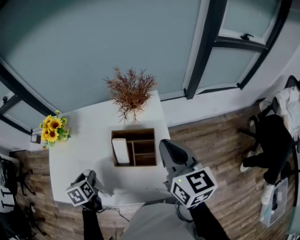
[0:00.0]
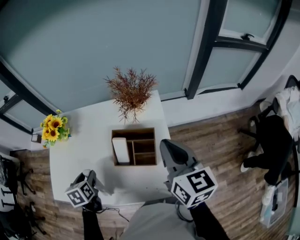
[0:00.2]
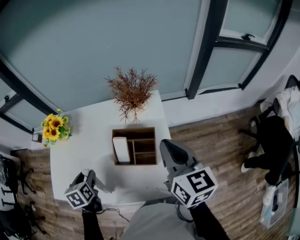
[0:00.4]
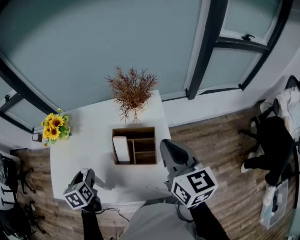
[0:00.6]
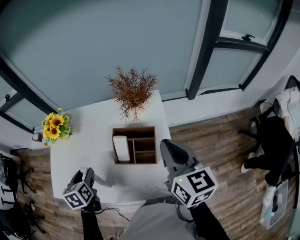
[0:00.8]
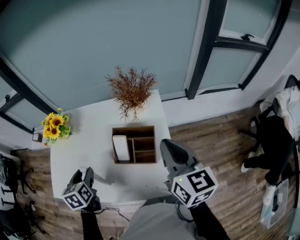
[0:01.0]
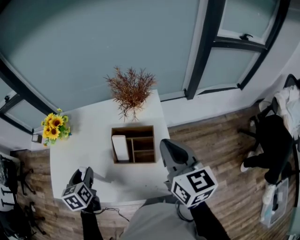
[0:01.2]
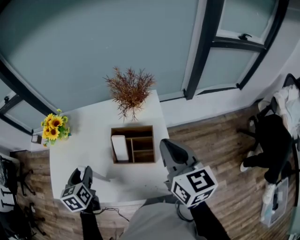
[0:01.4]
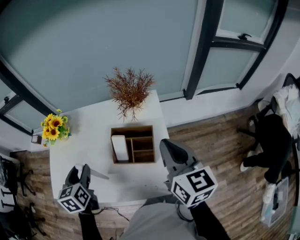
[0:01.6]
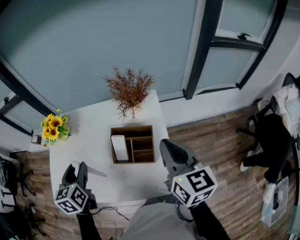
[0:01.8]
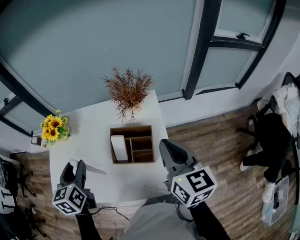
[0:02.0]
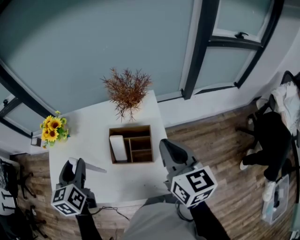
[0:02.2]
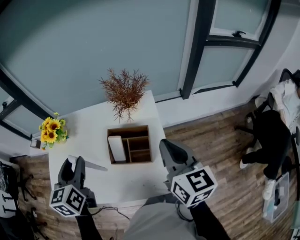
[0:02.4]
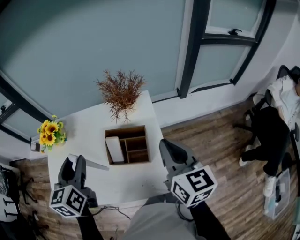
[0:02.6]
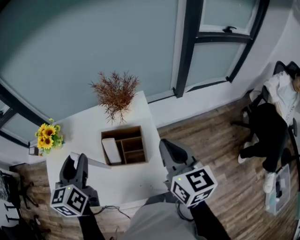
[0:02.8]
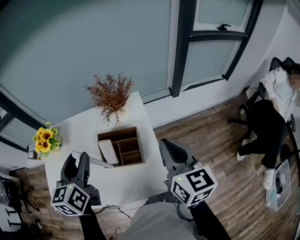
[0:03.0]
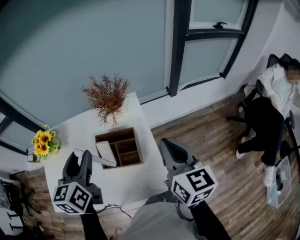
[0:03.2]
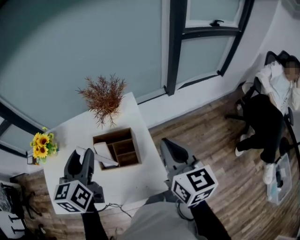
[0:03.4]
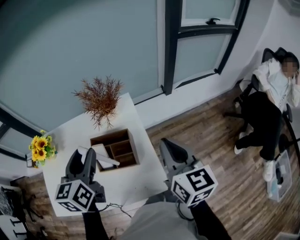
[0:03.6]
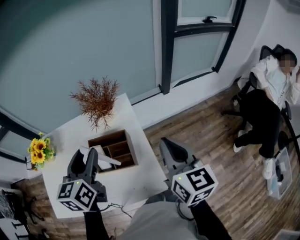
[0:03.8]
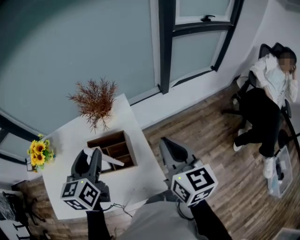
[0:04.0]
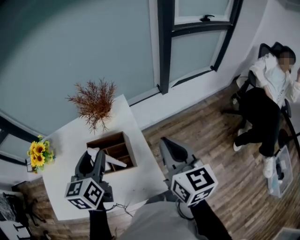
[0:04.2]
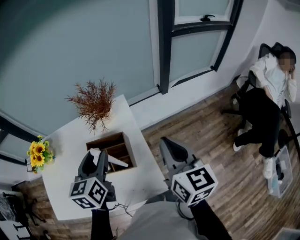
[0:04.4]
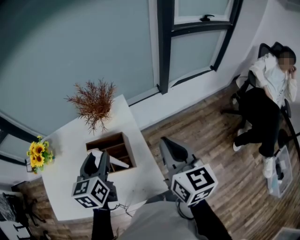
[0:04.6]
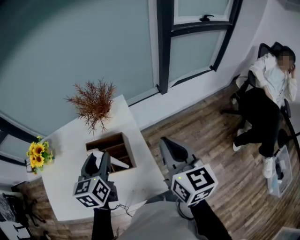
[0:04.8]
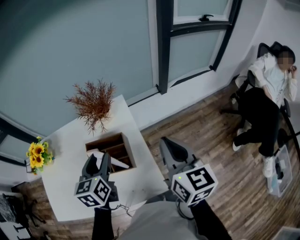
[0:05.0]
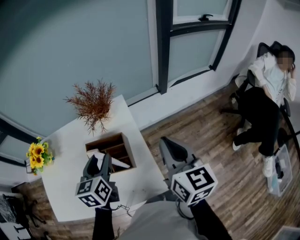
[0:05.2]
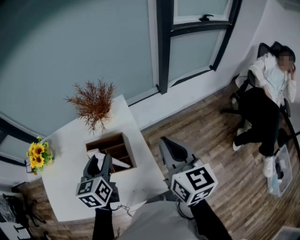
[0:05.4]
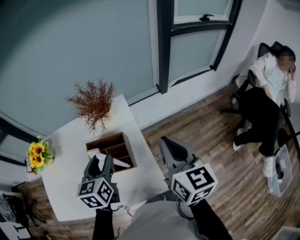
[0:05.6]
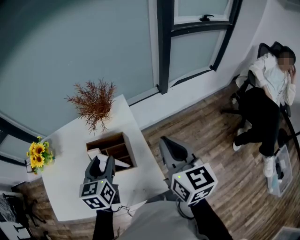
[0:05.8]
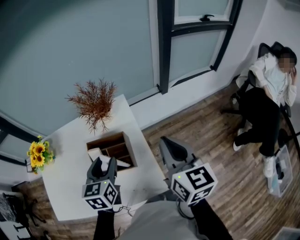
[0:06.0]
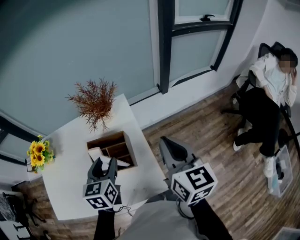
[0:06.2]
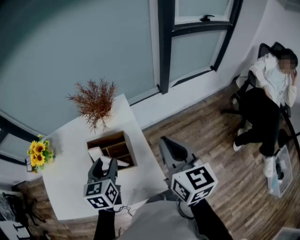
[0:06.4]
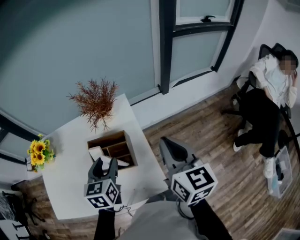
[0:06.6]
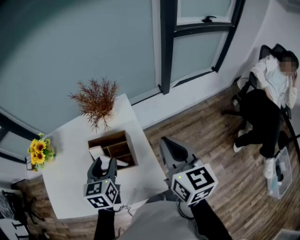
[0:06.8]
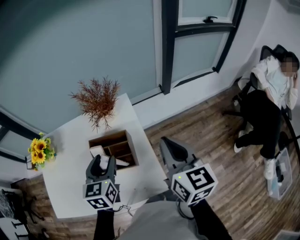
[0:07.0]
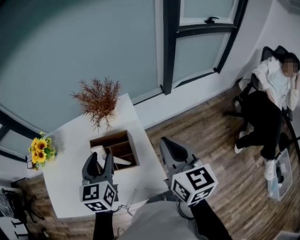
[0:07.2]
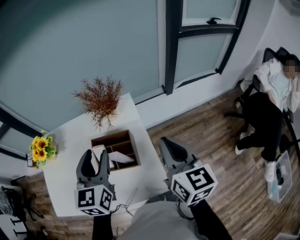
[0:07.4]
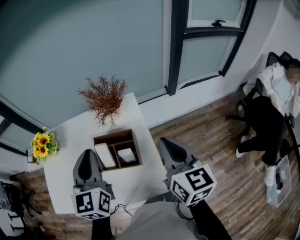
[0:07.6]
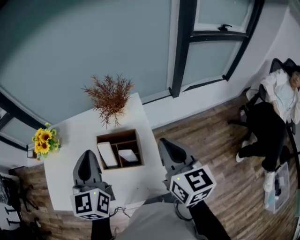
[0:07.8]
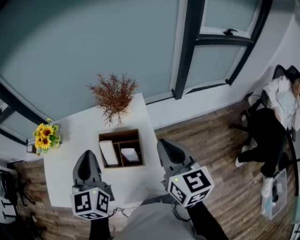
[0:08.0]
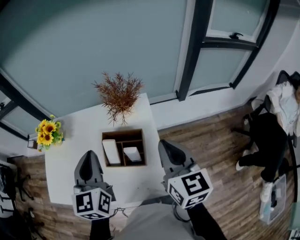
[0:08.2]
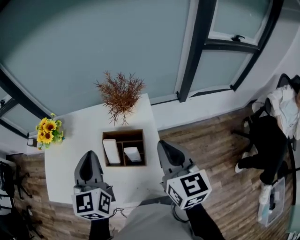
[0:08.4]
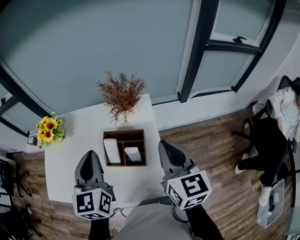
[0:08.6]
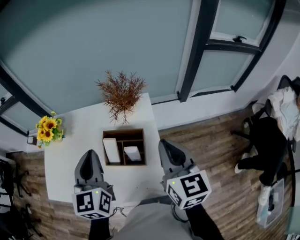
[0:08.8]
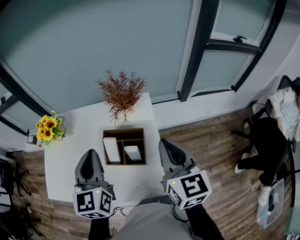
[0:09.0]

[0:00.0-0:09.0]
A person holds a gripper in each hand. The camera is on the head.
0:00.0 to 0:01.6: The left gripper travels upward by some 10 cm.
0:01.6 to 0:03.0: The left gripper goes approximately 15 cm to the right and upward, and turns by approximately 20 degrees. Meanwhile the right gripper changes place by approximately 5 cm.
0:03.0 to 0:04.4: The left gripper travels to the right and downward by approximately 10 cm, while the right gripper travels to the right by roughly 5 cm.
0:04.4 to 0:06.0: The left gripper moves downward, approximately 5 cm.
0:06.0 to 0:07.6: The left gripper shifts about 10 cm upward, changes its angle by approximately 20 degrees, and closes.
0:07.6 to 0:09.0: The grippers make only small movements.

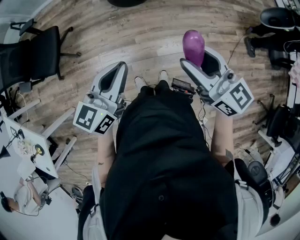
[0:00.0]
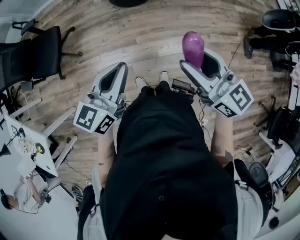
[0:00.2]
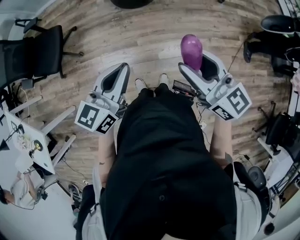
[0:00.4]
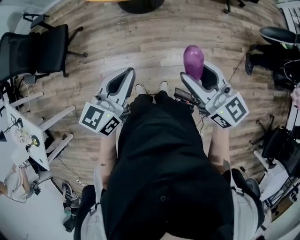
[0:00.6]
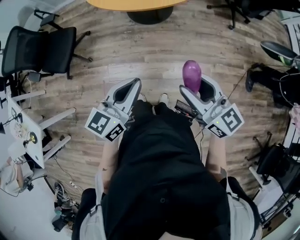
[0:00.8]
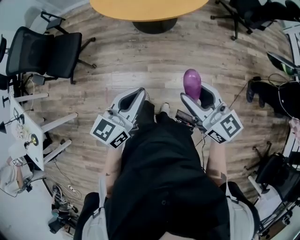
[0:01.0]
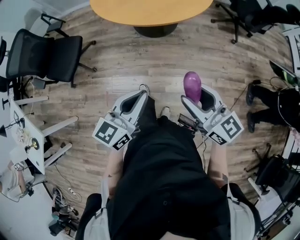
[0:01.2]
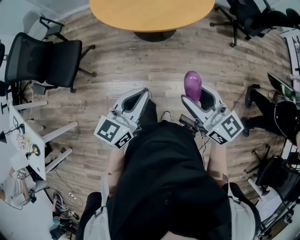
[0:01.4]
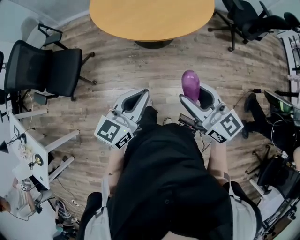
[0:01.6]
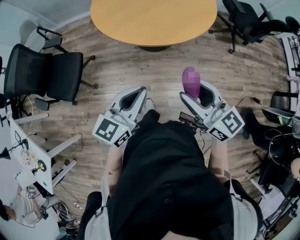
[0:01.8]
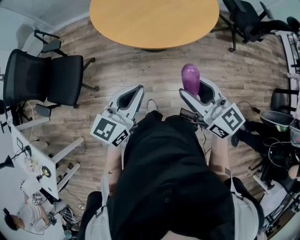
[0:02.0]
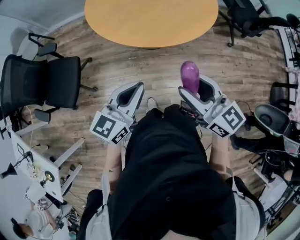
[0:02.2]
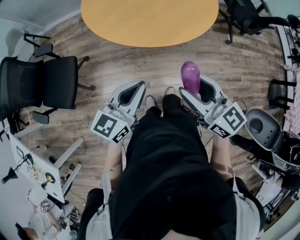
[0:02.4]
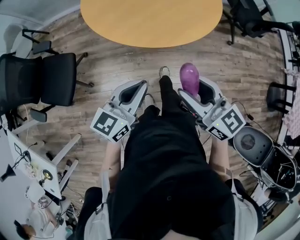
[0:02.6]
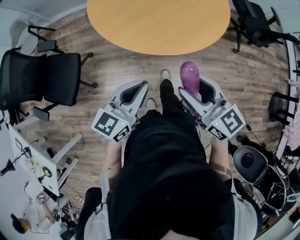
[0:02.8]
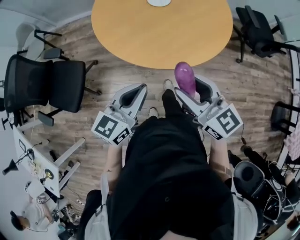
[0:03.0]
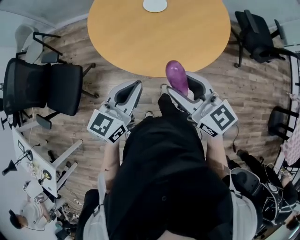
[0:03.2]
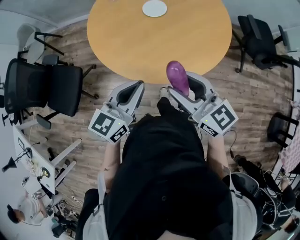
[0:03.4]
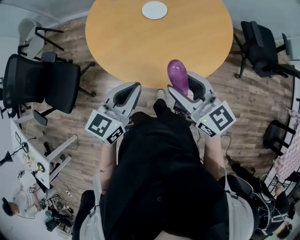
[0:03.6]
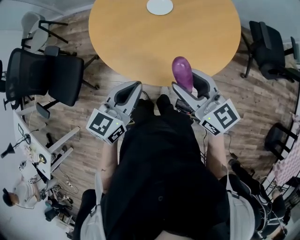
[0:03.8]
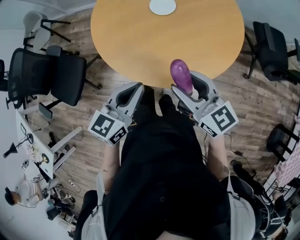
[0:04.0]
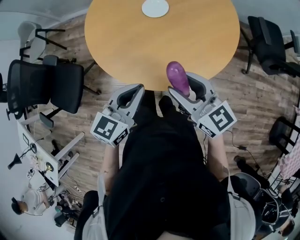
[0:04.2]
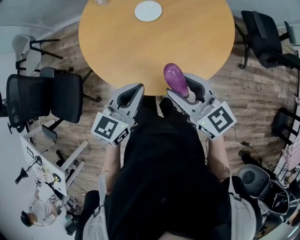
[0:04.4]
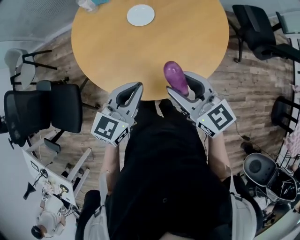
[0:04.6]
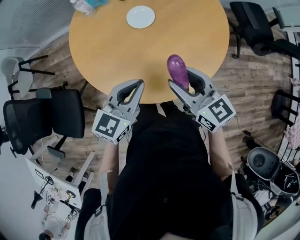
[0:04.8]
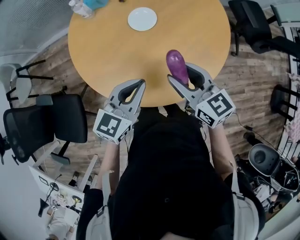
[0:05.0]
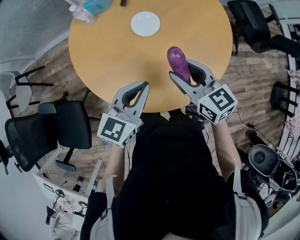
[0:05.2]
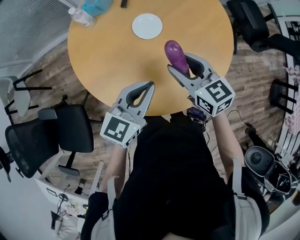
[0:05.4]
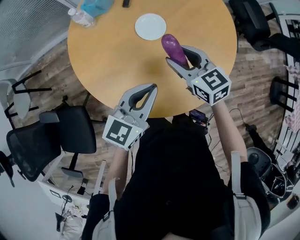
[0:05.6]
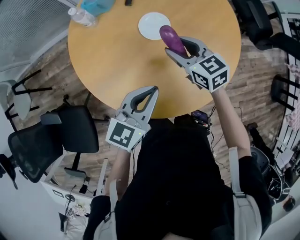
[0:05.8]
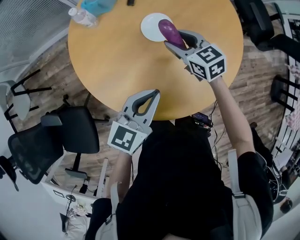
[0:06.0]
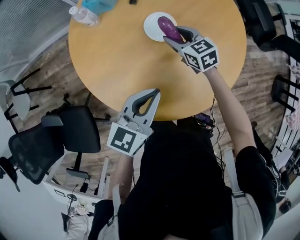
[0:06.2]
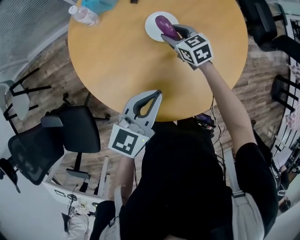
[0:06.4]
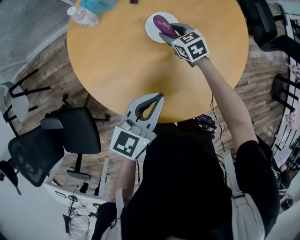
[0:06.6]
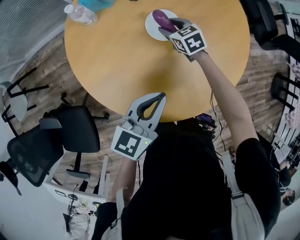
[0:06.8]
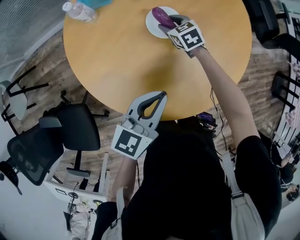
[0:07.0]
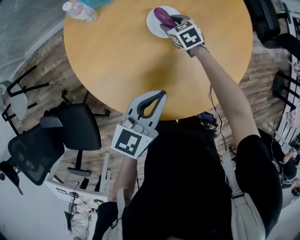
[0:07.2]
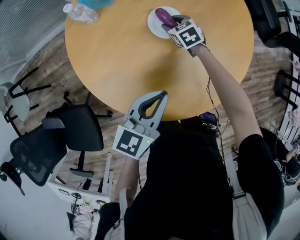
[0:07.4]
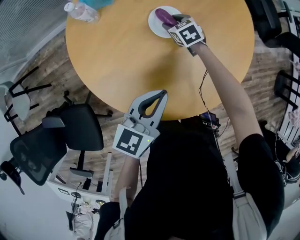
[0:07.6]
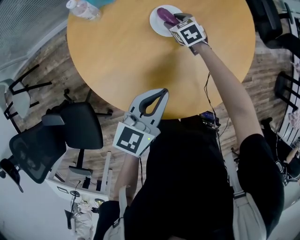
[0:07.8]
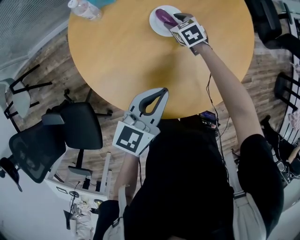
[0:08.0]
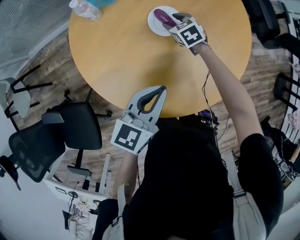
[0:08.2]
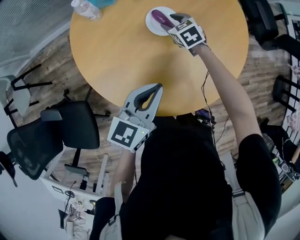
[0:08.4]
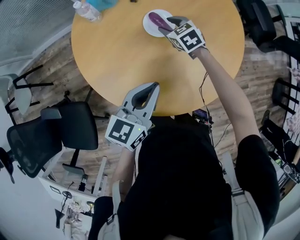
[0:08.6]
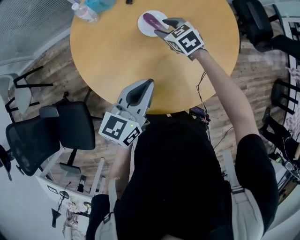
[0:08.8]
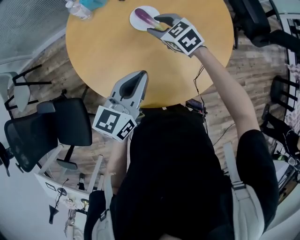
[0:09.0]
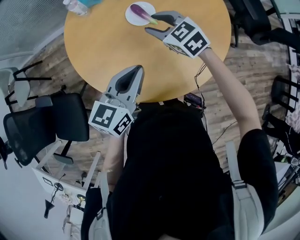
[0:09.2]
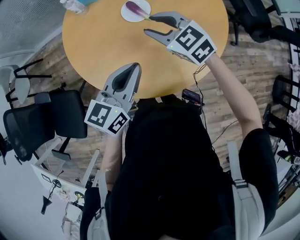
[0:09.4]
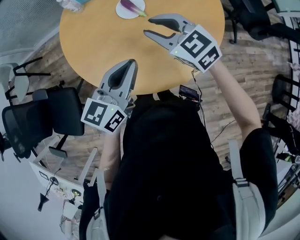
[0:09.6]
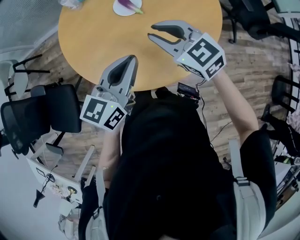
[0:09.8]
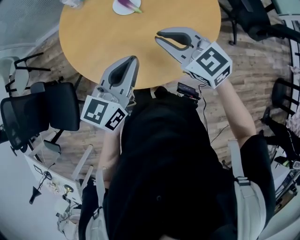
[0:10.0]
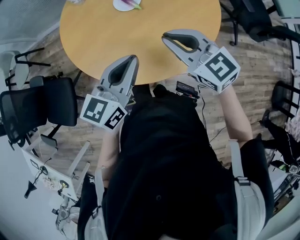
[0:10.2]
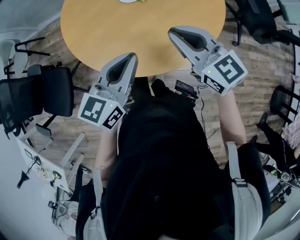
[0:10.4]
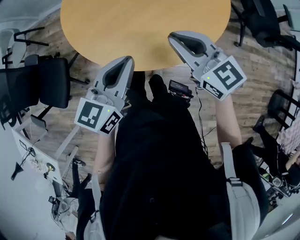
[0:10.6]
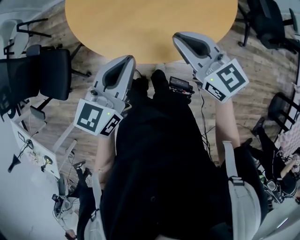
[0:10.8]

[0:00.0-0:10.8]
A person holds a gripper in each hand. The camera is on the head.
0:00.0 to 0:01.6: Both grippers move forward, roughly 15 cm.
0:01.6 to 0:03.0: The two grippers go some 25 cm forward.
0:03.0 to 0:04.6: Both grippers move forward, roughly 20 cm.
0:04.6 to 0:06.2: The right gripper shifts about 40 cm forward, downward and to the left, and changes its angle by approximately 30 degrees. The left gripper goes roughly 20 cm forward and to the left.
0:06.2 to 0:07.8: The right gripper goes approximately 15 cm downward and forward, and turns by about 20 degrees.
0:07.8 to 0:09.2: The left gripper heads to the right, upward and backward, covering about 10 cm; the right gripper heads upward and backward, covering some 25 cm, and turns by roughly 30 degrees.
0:09.2 to 0:10.8: The right gripper moves backward, some 25 cm, rotates approximately 30 degrees, and closes its fingers, while the left gripper moves backward, some 15 cm.

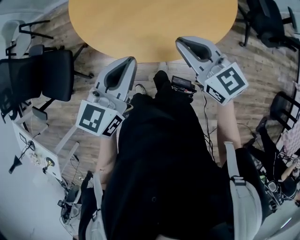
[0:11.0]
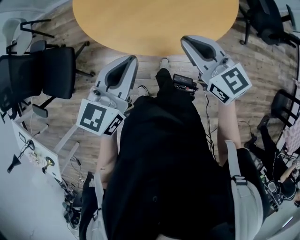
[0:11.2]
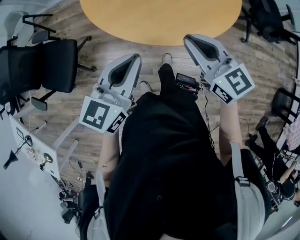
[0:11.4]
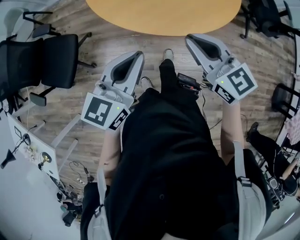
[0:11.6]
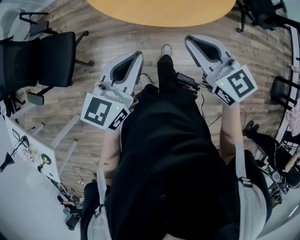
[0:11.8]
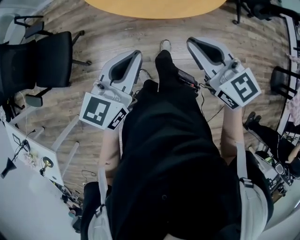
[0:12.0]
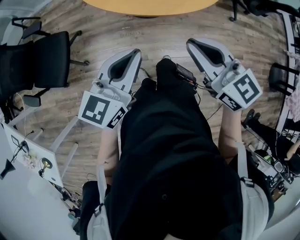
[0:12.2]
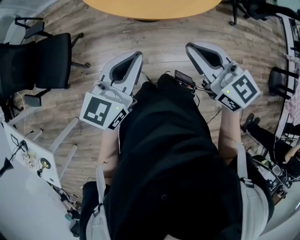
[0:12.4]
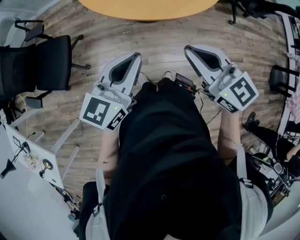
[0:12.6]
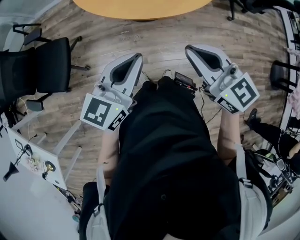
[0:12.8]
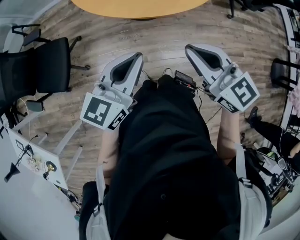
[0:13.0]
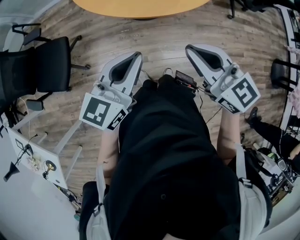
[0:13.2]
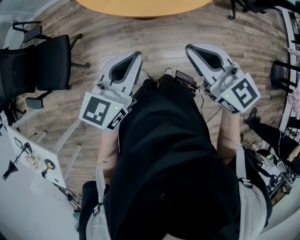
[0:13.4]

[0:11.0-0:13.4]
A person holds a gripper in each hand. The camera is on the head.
0:11.0 to 0:12.2: Both grippers move backward and to the left, some 30 cm.
0:12.2 to 0:13.4: The grippers stay close to where they were, moving slightly.

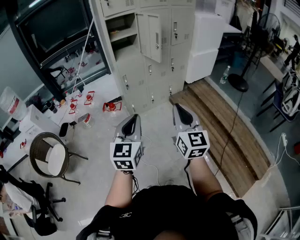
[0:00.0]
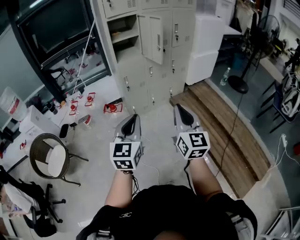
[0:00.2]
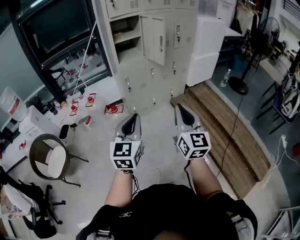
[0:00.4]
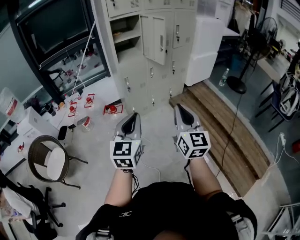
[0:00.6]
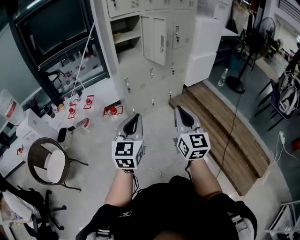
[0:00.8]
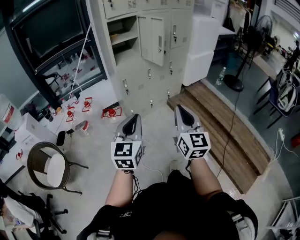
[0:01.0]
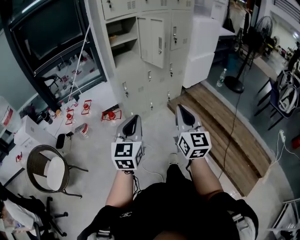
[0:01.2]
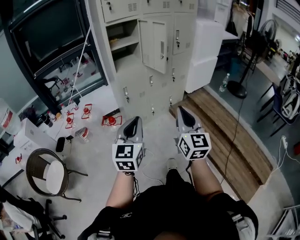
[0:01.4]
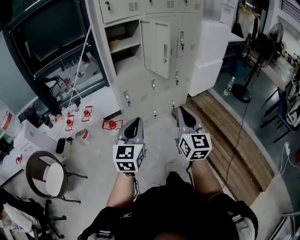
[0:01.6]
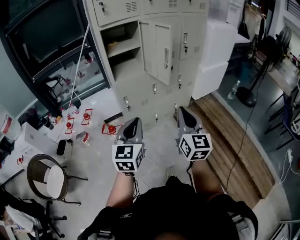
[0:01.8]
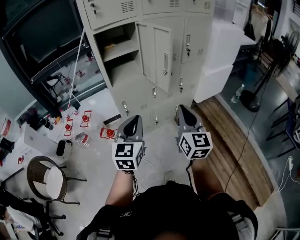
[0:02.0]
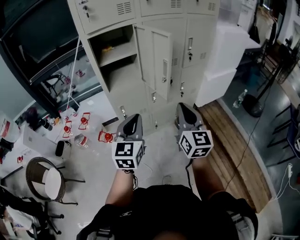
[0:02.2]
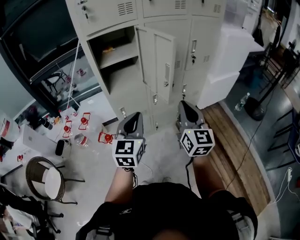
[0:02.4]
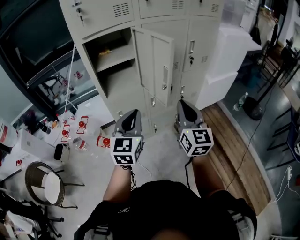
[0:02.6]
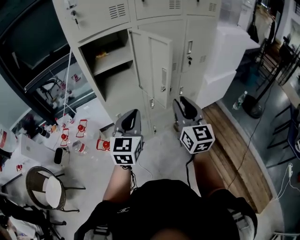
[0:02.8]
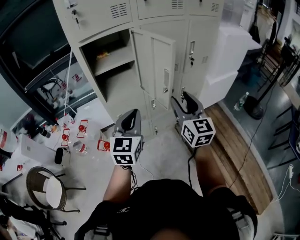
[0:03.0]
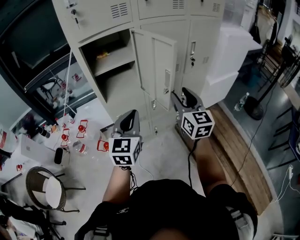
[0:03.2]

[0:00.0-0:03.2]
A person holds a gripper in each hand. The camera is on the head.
0:00.0 to 0:01.6: Both grippers travel together forward, some 15 cm.
0:01.6 to 0:03.2: Both grippers move forward, about 35 cm. The right gripper opens its fingers.
